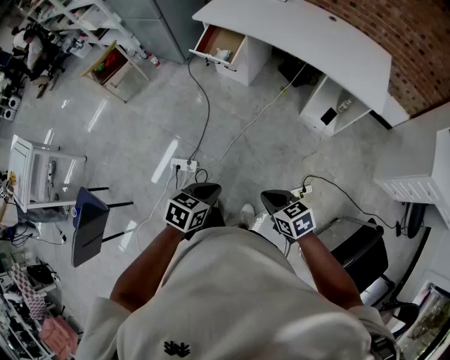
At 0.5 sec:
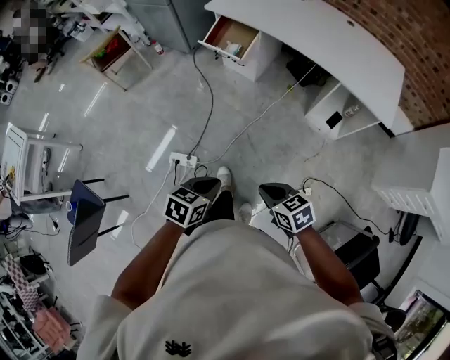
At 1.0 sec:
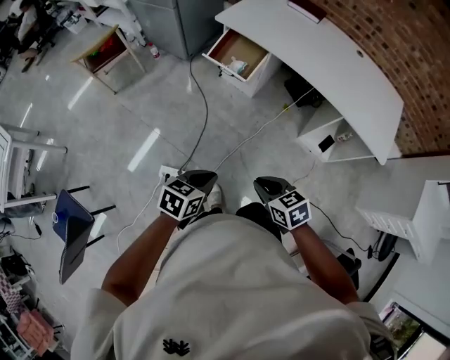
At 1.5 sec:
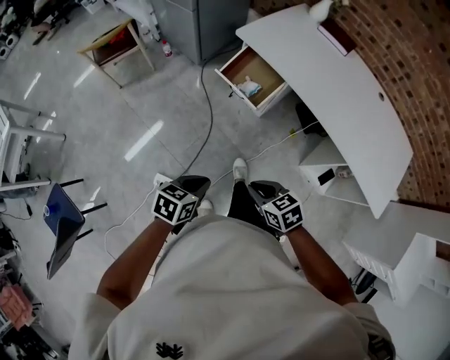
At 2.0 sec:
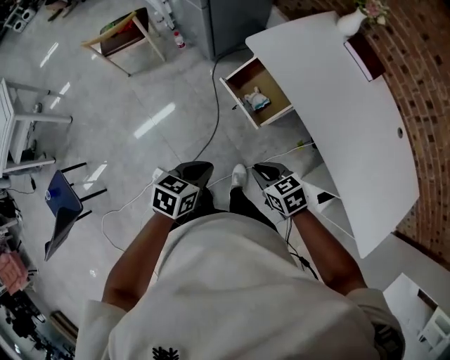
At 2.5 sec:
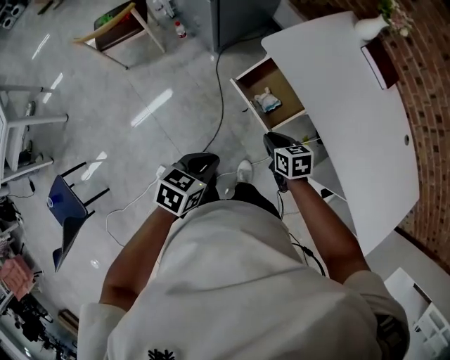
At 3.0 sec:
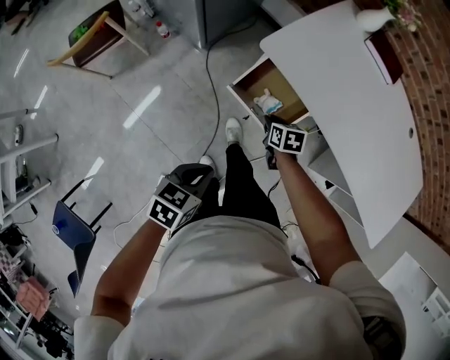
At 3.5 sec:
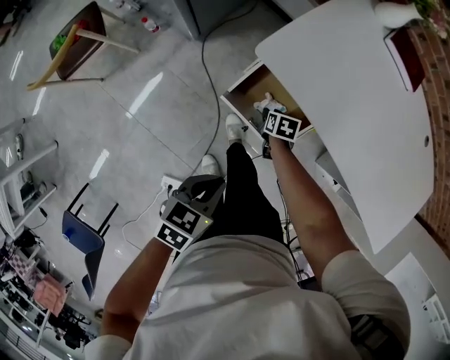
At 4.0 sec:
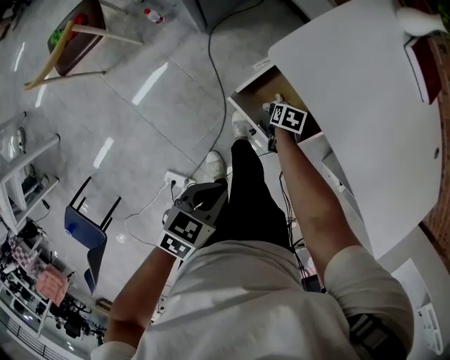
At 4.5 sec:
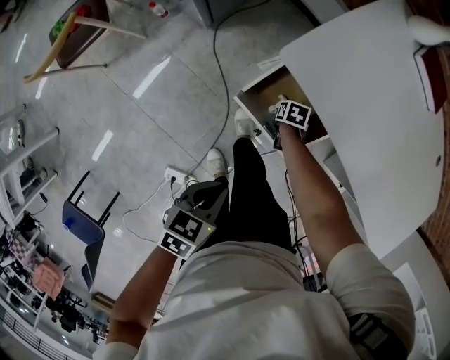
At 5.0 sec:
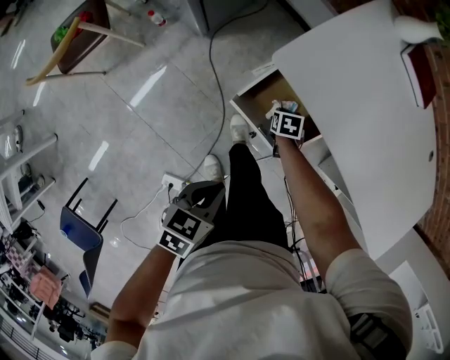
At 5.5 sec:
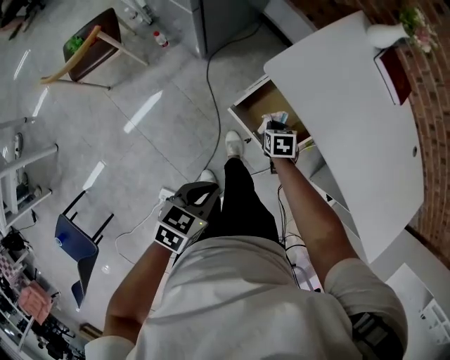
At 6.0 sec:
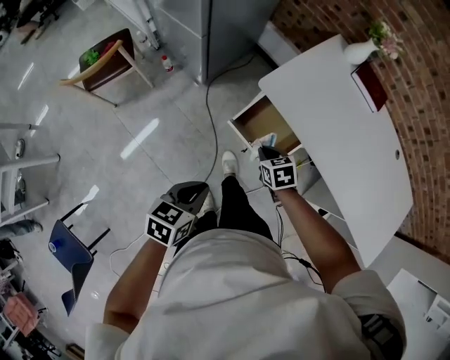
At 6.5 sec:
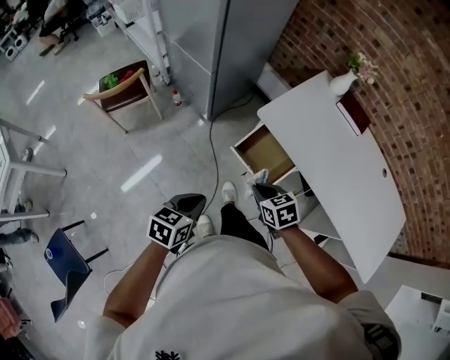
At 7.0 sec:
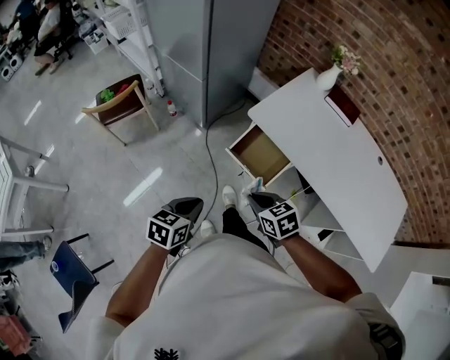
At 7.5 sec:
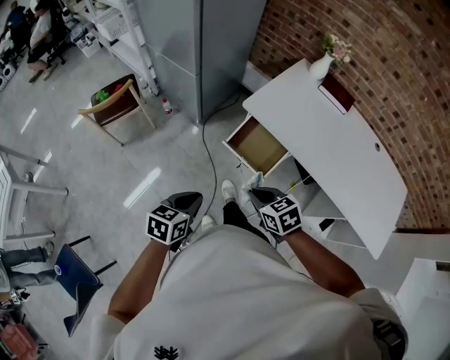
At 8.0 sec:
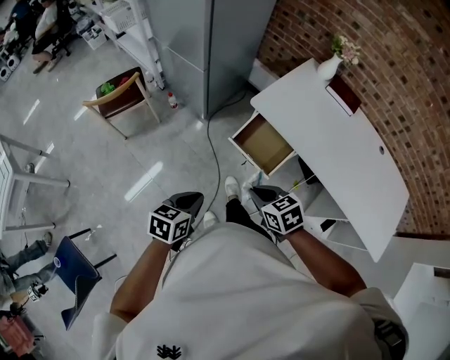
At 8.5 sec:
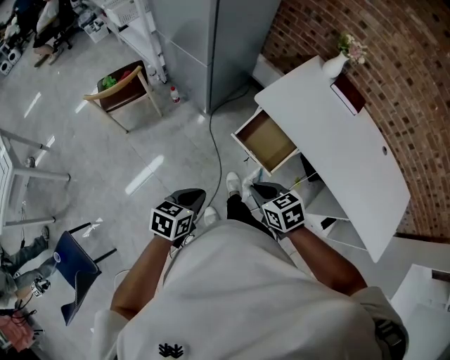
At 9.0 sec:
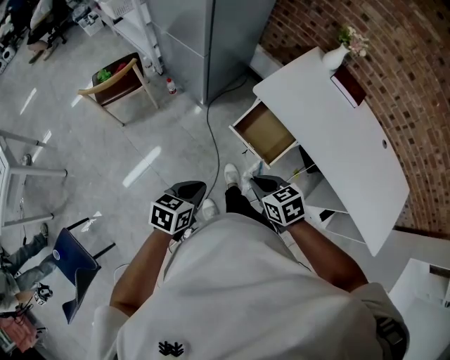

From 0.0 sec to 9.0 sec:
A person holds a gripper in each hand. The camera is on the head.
From 0.0 sec to 2.0 sec: Both grippers are carried forward, approximately 70 cm. The right gripper turns by about 30 degrees. Meanwhile the left gripper rotates approximately 30 degrees.
From 2.0 sec to 4.5 sec: The right gripper ends up about 60 cm from where it was, points its fingers some 30 degrees further downward, and opens, then closes once more. Meanwhile the left gripper ends up some 35 cm from where it was.
From 4.5 sec to 7.0 sec: The left gripper heads upward, covering some 25 cm, and swivels approximately 20 degrees; the right gripper travels upward by approximately 50 cm, and angles its fingers upward, by about 30 degrees.
From 7.0 sec to 9.0 sec: There are only small adjustments of the grippers.

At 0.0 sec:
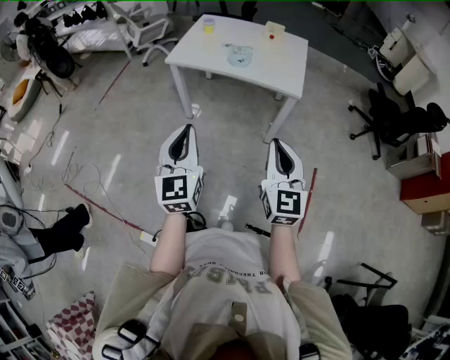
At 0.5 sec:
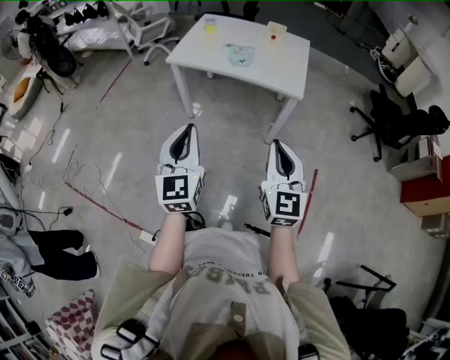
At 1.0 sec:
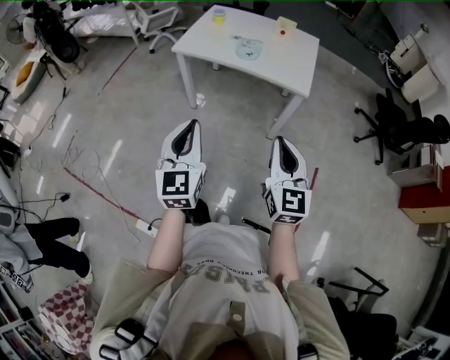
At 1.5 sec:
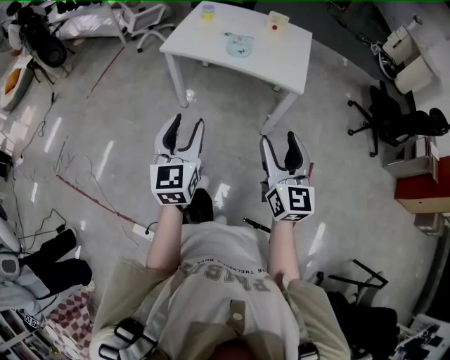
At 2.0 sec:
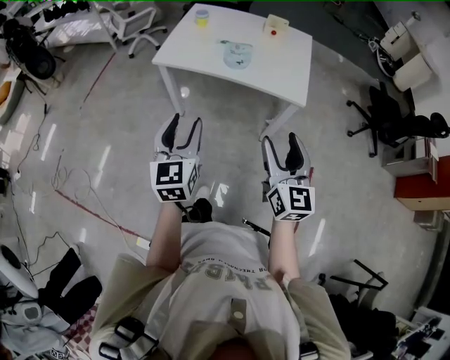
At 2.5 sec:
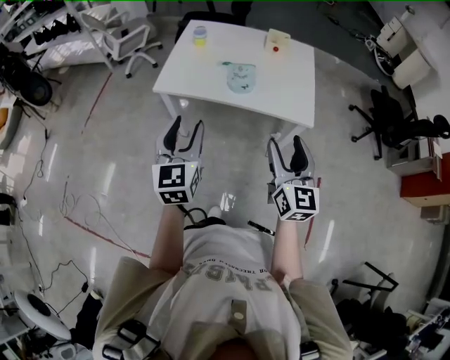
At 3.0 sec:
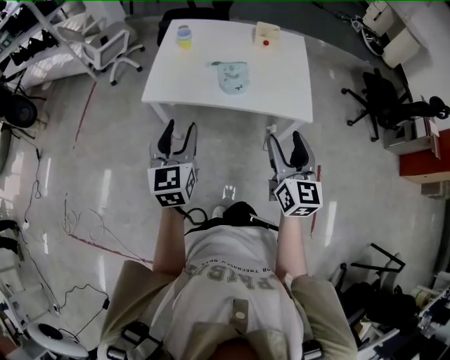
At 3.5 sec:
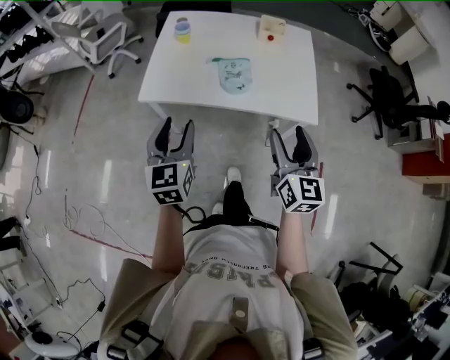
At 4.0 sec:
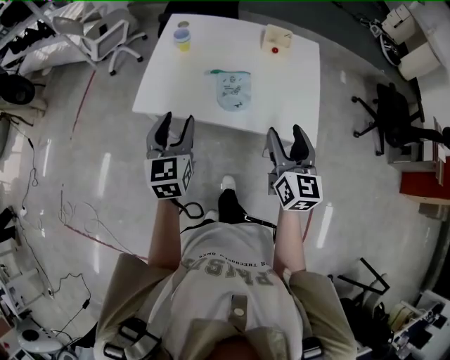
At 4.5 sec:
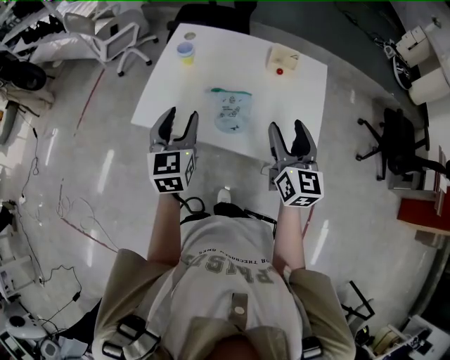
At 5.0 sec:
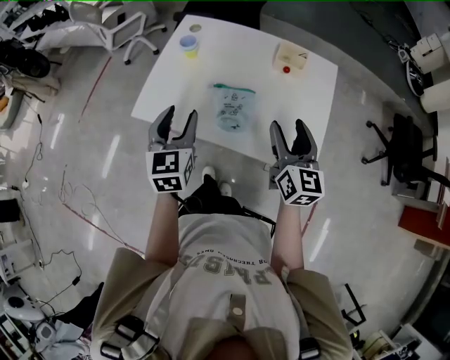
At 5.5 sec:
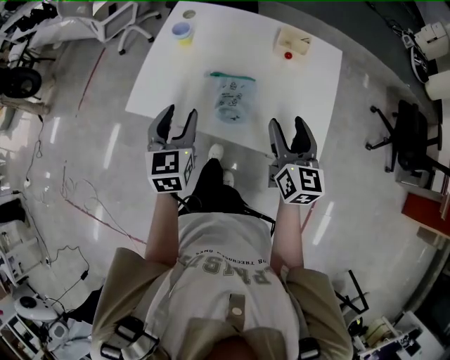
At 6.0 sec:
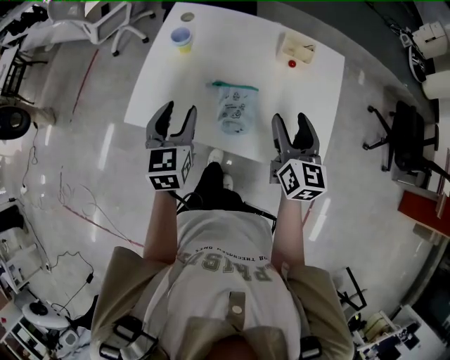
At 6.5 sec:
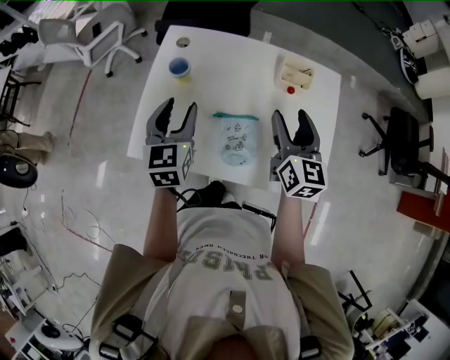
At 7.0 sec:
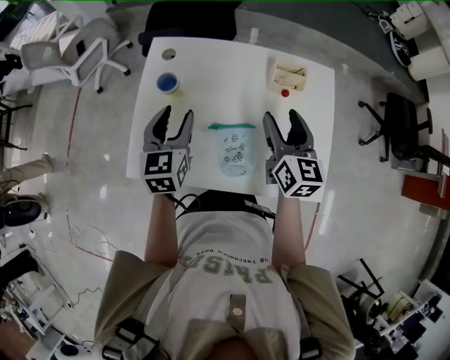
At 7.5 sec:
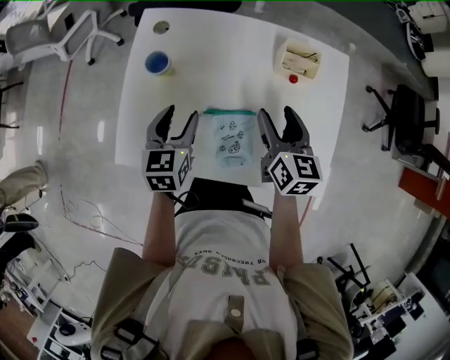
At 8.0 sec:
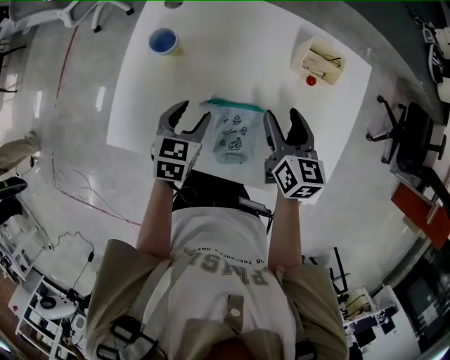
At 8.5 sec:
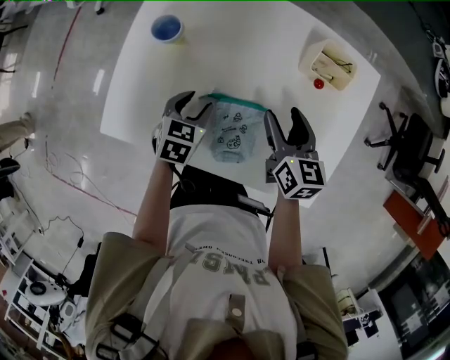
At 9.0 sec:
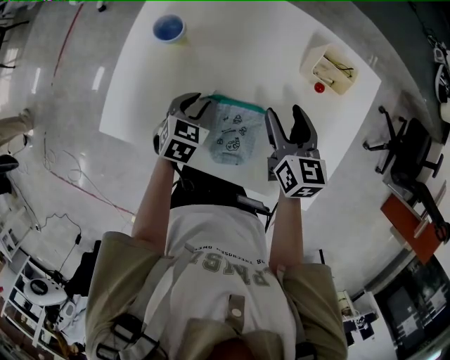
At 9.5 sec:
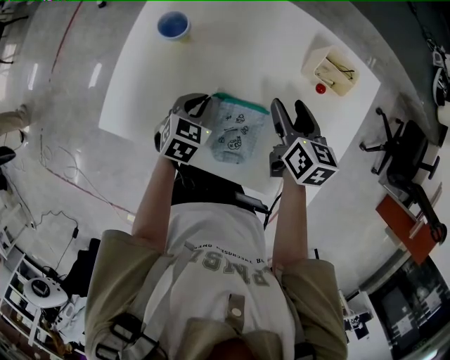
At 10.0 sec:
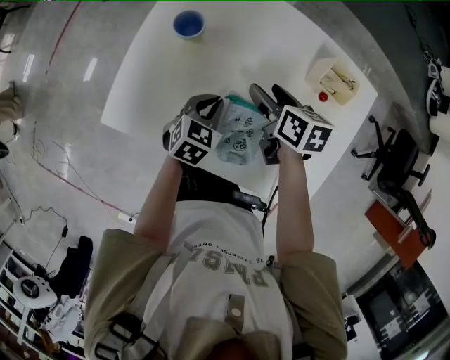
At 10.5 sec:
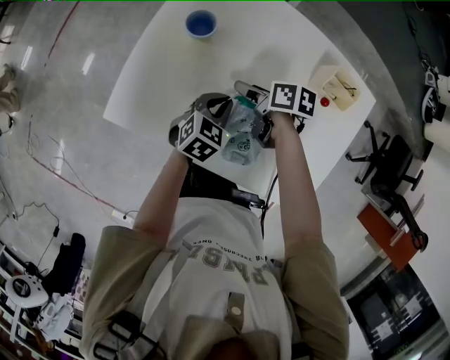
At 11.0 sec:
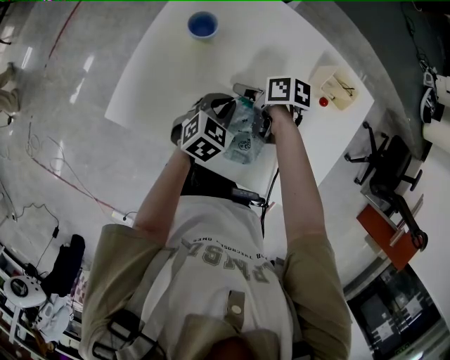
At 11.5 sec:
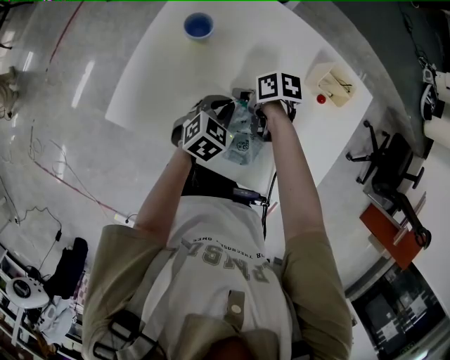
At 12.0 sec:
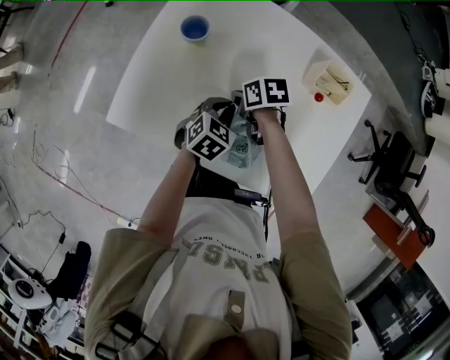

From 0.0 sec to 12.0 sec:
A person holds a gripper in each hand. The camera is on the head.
From 0.0 sec to 2.0 sec: The grippers both shift forward by roughly 15 cm. The left gripper opens its fingers. Meanwhile the right gripper opens up.
From 2.0 sec to 4.0 sec: Both grippers travel together forward, roughly 35 cm.
From 4.0 sec to 6.0 sec: Both grippers move forward, about 15 cm.
From 6.0 sec to 8.0 sec: The left gripper goes roughly 20 cm downward and forward, and swivels about 30 degrees. Meanwhile the right gripper shifts approximately 20 cm forward and downward.
From 8.0 sec to 10.0 sec: The right gripper shifts some 10 cm to the left and forward, and turns by roughly 30 degrees. Meanwhile the left gripper closes.
From 10.0 sec to 12.0 sec: The right gripper heads downward, covering approximately 10 cm, rotates about 30 degrees, and closes up.

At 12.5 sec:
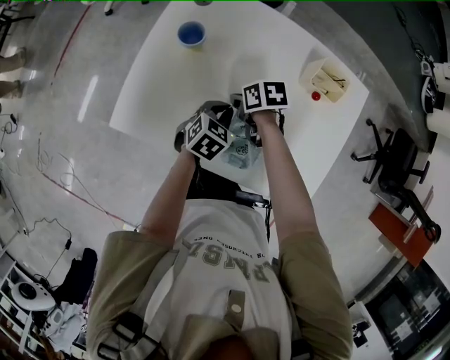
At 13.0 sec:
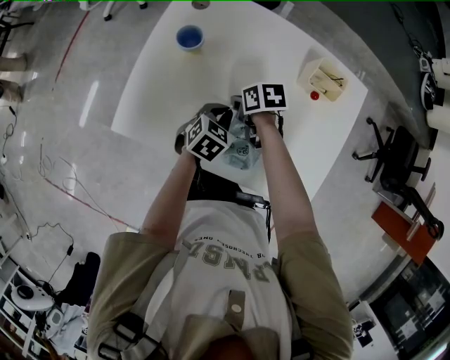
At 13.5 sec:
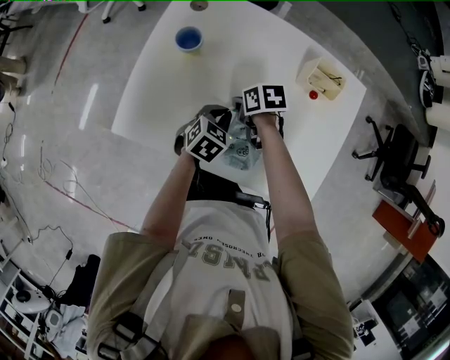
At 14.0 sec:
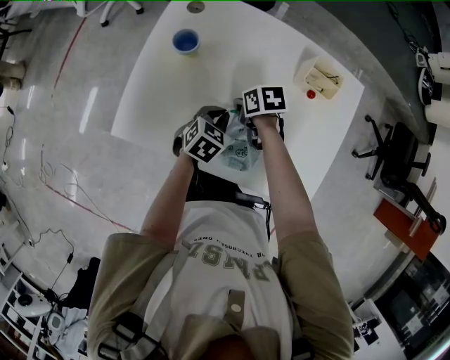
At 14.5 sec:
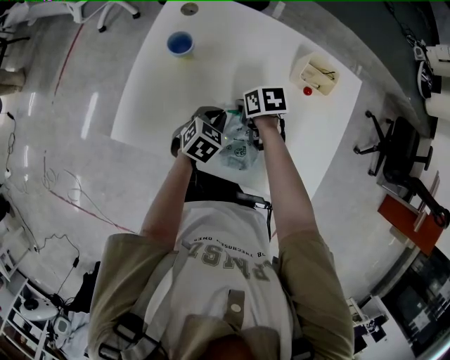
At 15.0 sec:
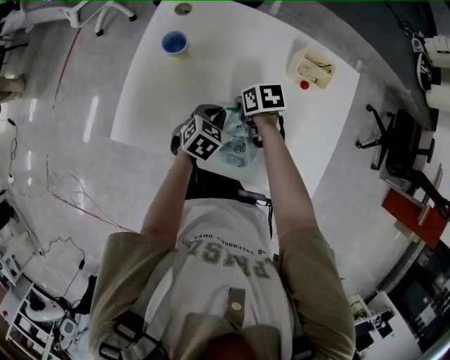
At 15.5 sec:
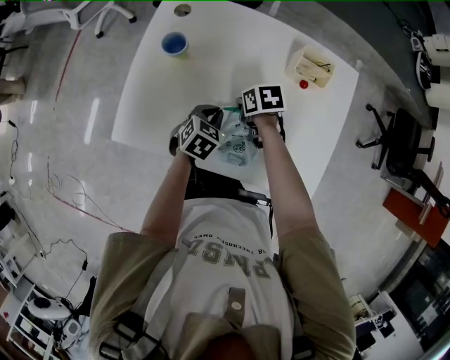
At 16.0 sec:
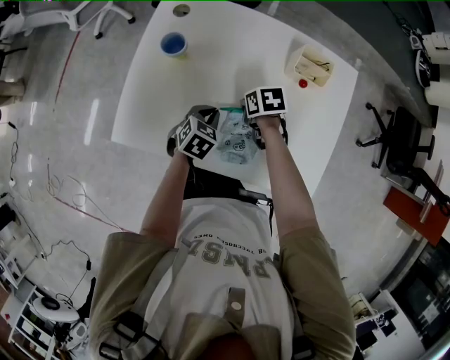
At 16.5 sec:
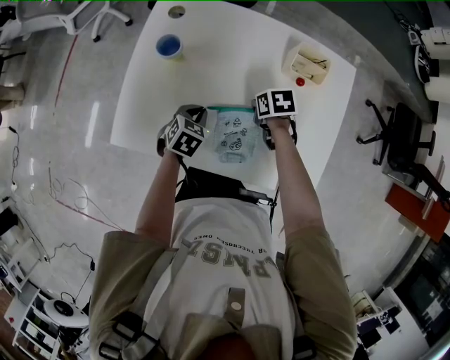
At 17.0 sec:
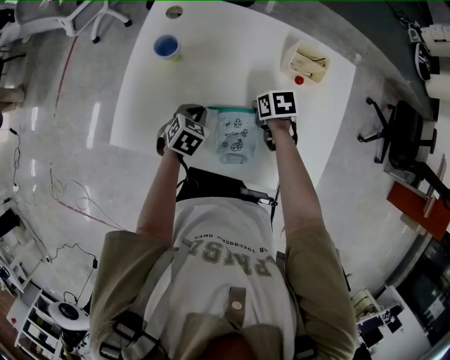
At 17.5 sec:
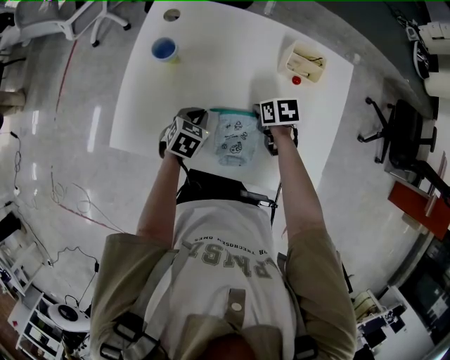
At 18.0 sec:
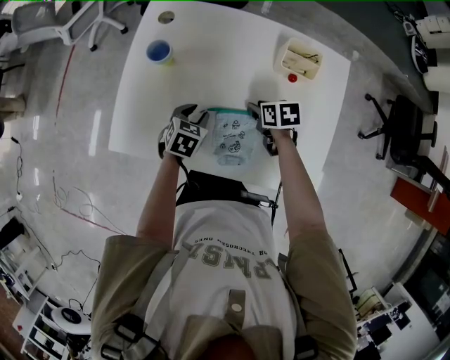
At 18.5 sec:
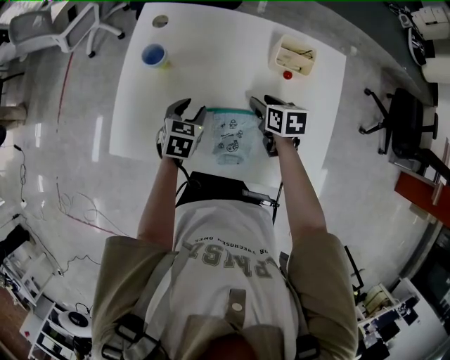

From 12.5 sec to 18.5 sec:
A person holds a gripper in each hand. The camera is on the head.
From 12.5 sec to 14.5 sec: The grippers move only a little.
From 14.5 sec to 16.5 sec: The right gripper goes some 5 cm to the right.
From 16.5 sec to 18.5 sec: The right gripper moves approximately 5 cm, swivels roughly 20 degrees, and opens up. Meanwhile the left gripper opens its fingers.
